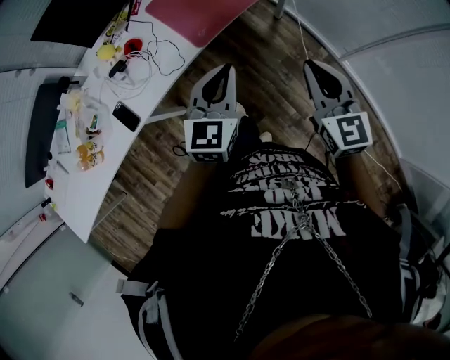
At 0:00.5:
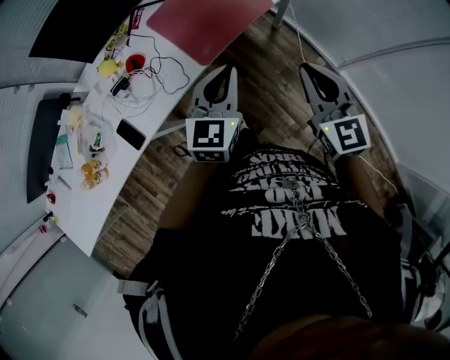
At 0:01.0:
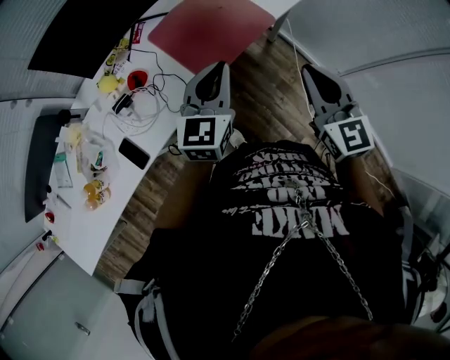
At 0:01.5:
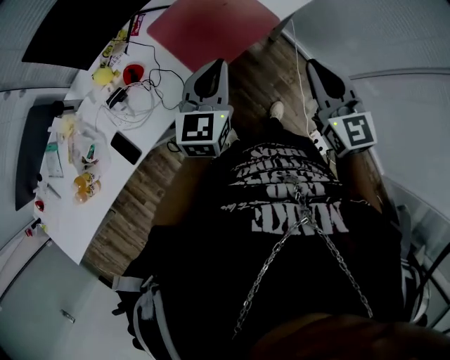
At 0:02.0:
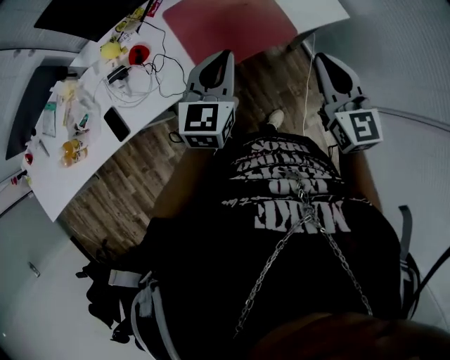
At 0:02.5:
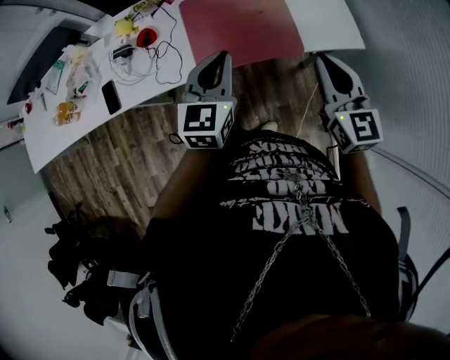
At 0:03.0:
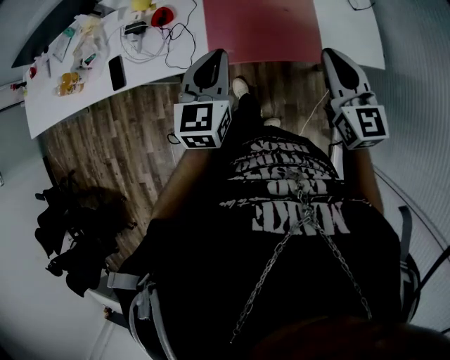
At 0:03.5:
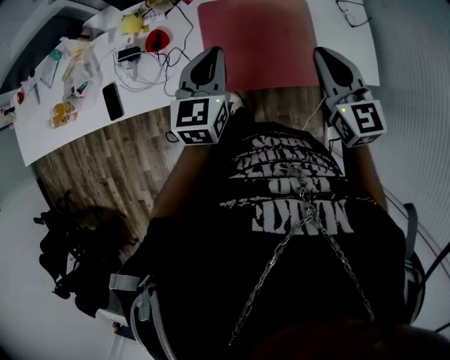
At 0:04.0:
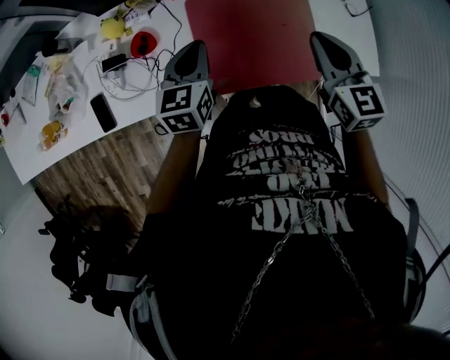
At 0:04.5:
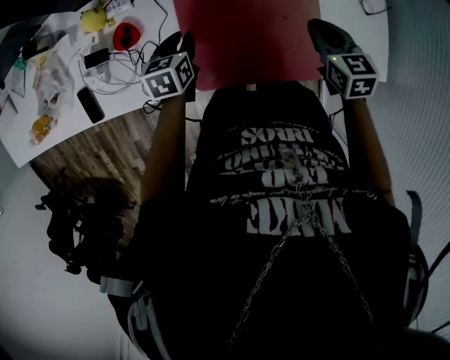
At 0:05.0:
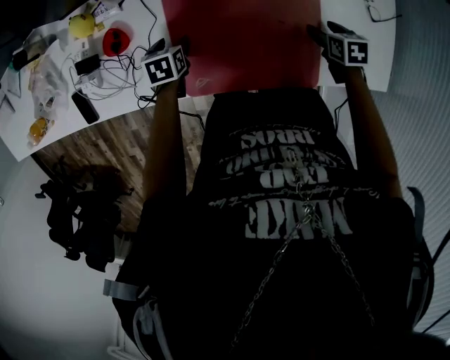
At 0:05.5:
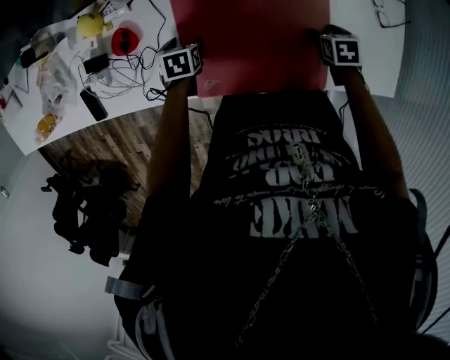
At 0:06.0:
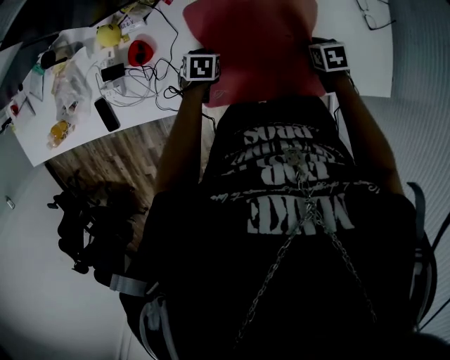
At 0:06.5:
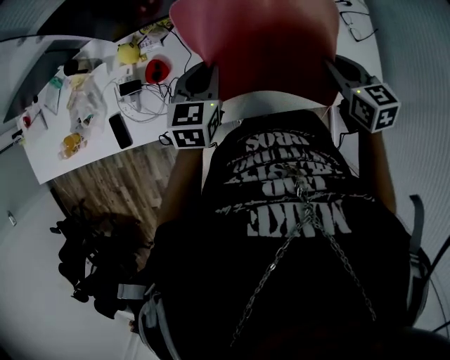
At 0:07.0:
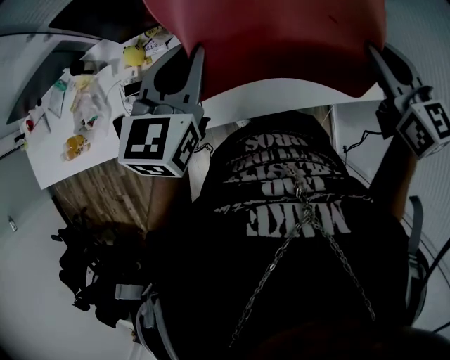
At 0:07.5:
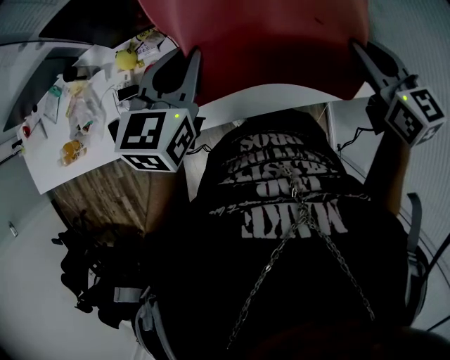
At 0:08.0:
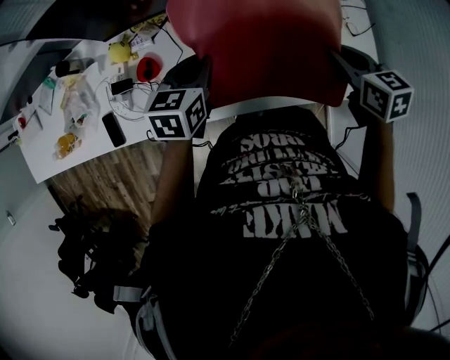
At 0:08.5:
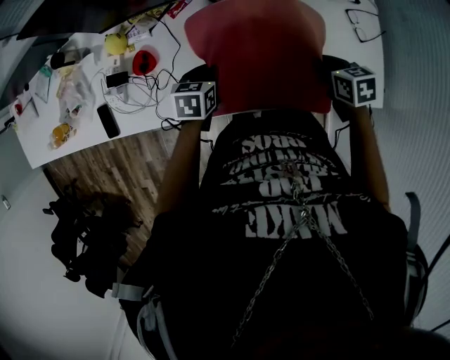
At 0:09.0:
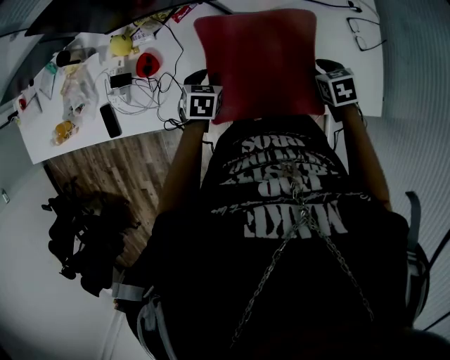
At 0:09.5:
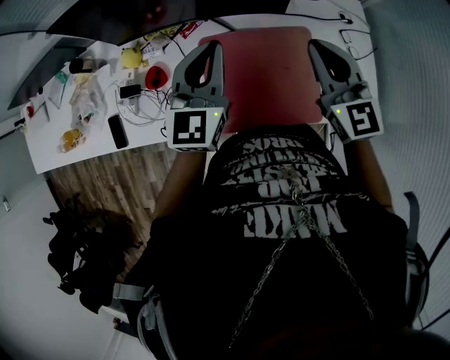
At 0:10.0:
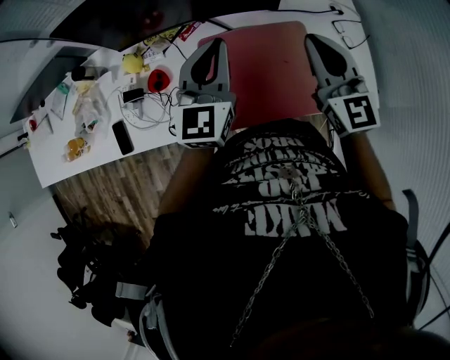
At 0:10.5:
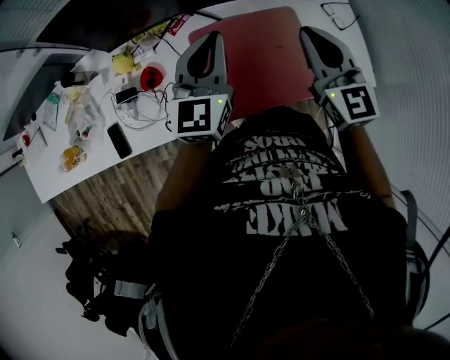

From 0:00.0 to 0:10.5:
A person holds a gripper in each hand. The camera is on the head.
From 0:00.0 to 0:02.0: The two grippers go some 25 cm forward.
From 0:02.0 to 0:04.0: The left gripper moves about 25 cm, and swivels about 30 degrees. Meanwhile the right gripper changes place by some 30 cm, and swivels about 20 degrees.
From 0:04.0 to 0:06.5: The left gripper goes downward and returns, approximately 25 cm each way, and opens, then closes again. Meanwhile the right gripper is displaced to the right by about 10 cm, travels downward and back again, some 35 cm each way, and opens, then closes again.
From 0:06.5 to 0:08.5: Both grippers travel together downward, roughly 15 cm. The right gripper changes its angle by approximately 20 degrees, while the left gripper changes its angle by approximately 20 degrees.
From 0:08.5 to 0:10.5: The two grippers go approximately 25 cm upward. The left gripper tilts its fingers about 50 degrees upward. Meanwhile the right gripper points its fingers roughly 50 degrees further upward.

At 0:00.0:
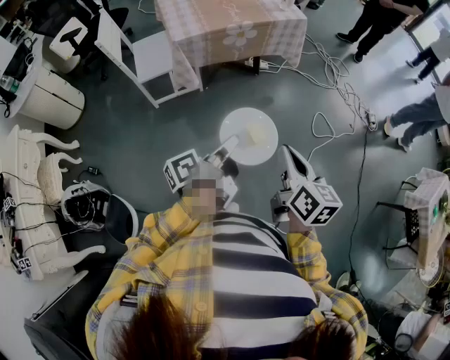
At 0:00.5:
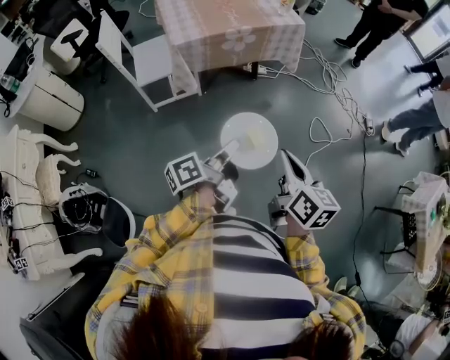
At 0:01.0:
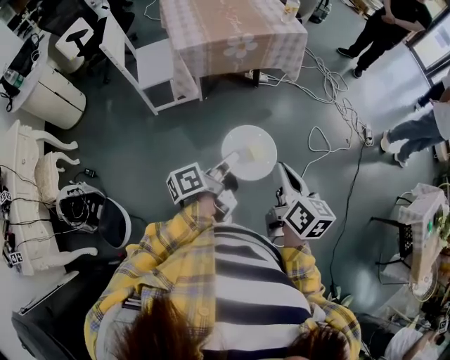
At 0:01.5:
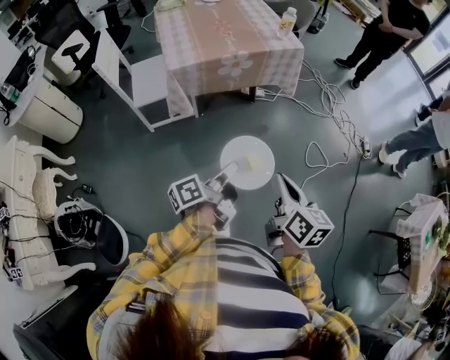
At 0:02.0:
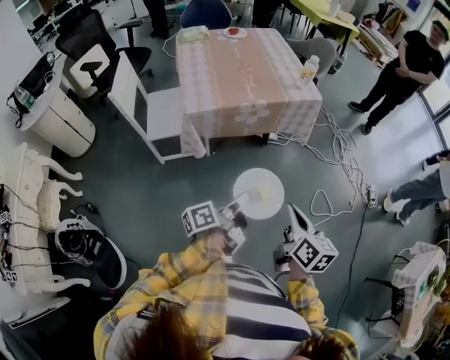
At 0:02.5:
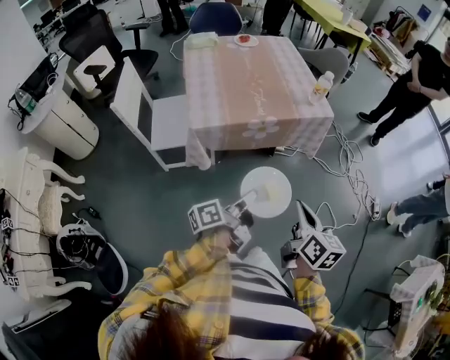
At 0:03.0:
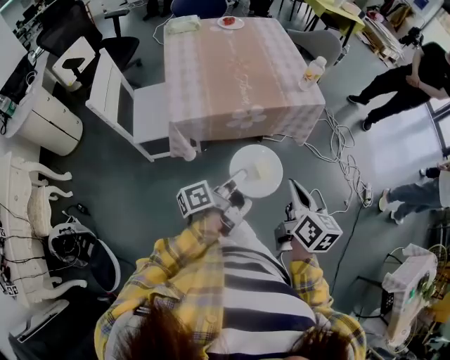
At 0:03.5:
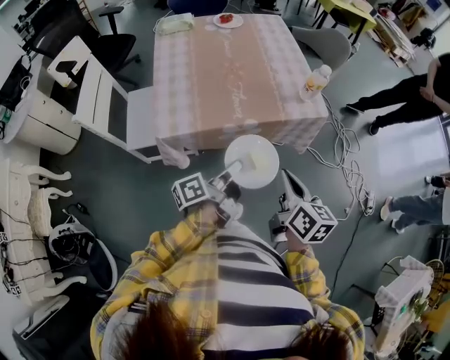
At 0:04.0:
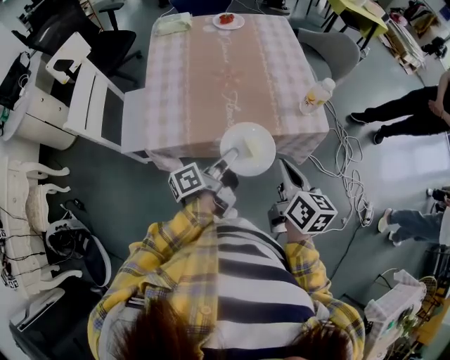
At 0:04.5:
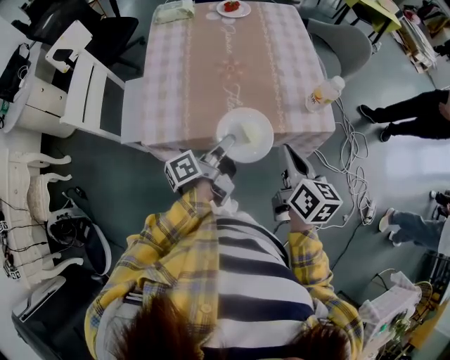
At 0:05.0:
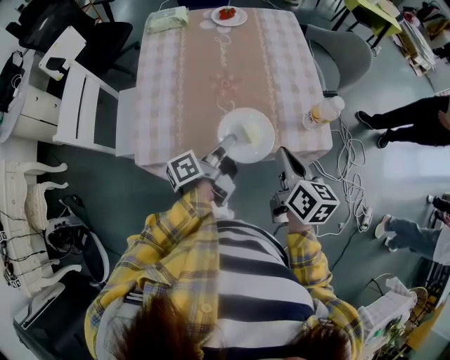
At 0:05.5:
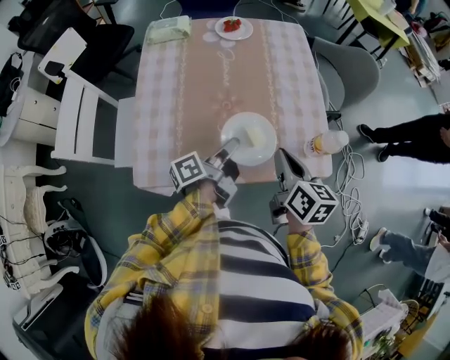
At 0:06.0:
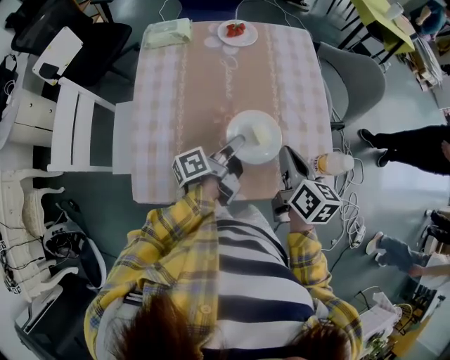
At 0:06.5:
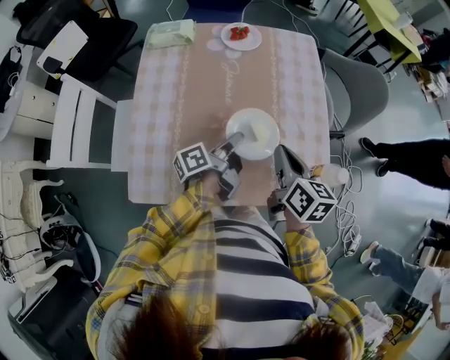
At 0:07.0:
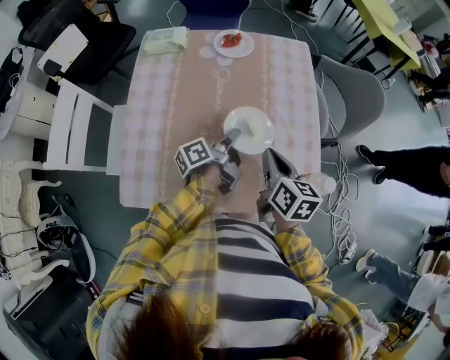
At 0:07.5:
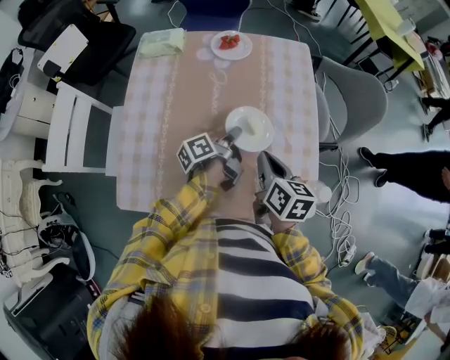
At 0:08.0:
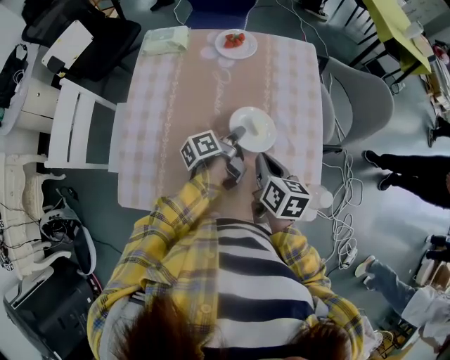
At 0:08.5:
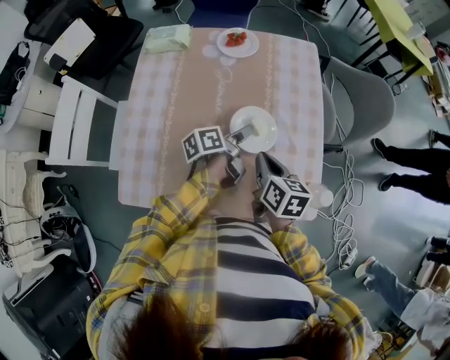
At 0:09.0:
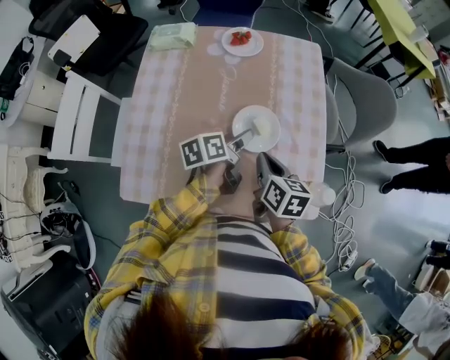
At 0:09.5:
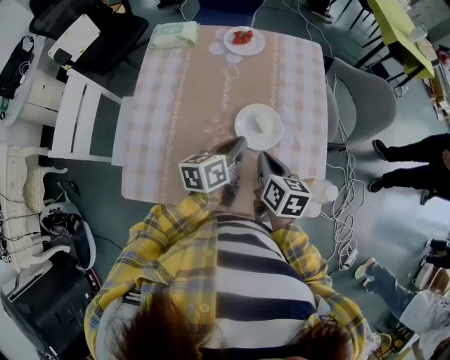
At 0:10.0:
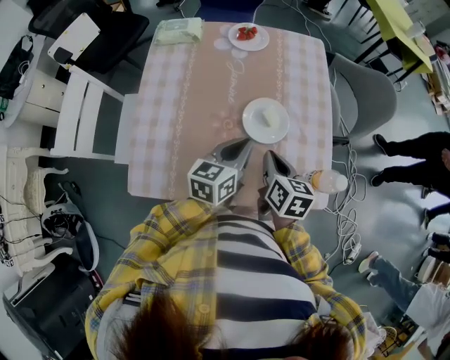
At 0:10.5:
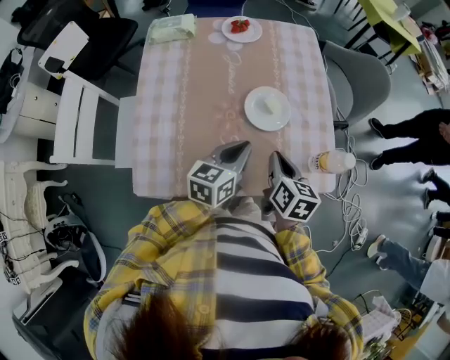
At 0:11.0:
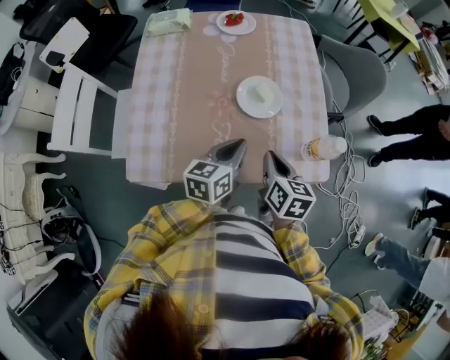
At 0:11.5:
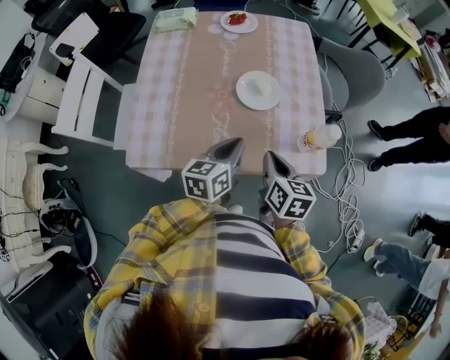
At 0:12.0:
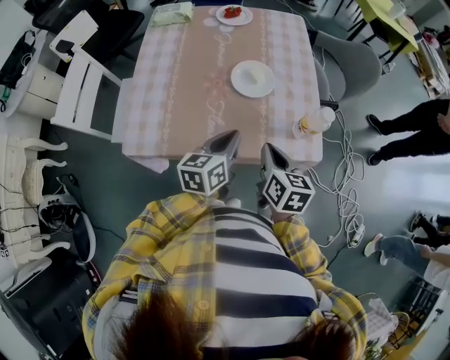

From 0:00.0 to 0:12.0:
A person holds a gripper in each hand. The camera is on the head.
From 0:00.0 to 0:02.0: The right gripper moves some 15 cm.
From 0:02.0 to 0:04.0: The right gripper shifts by some 35 cm.
From 0:04.0 to 0:06.0: The right gripper ends up approximately 25 cm from where it was.
From 0:06.0 to 0:08.0: The right gripper goes about 5 cm downward.
From 0:10.0 to 0:12.0: The right gripper changes place by some 15 cm.

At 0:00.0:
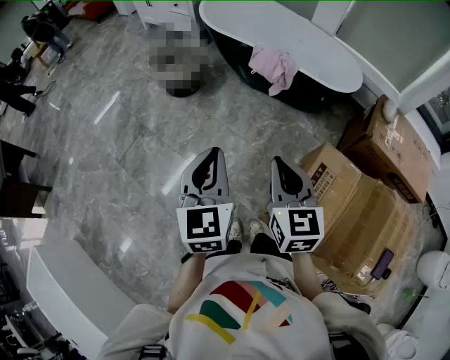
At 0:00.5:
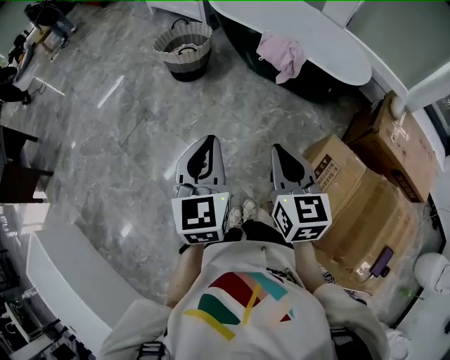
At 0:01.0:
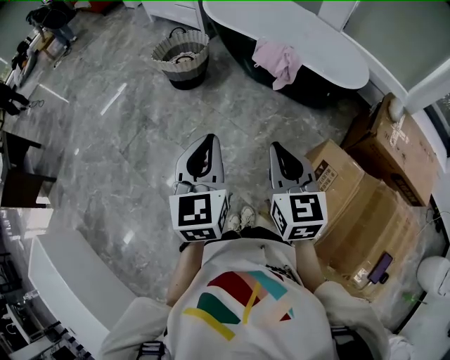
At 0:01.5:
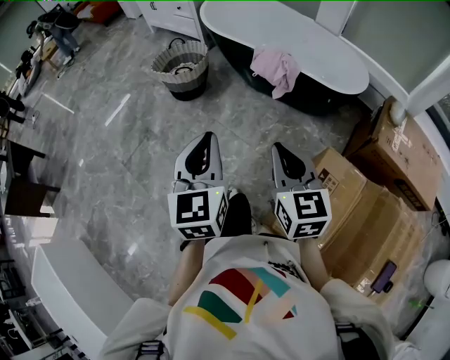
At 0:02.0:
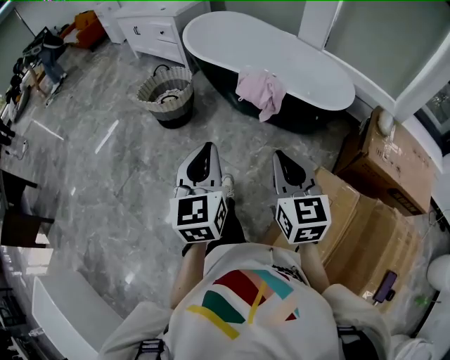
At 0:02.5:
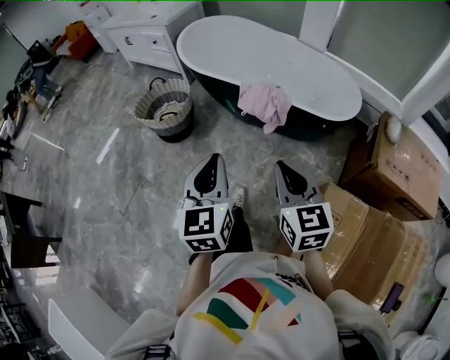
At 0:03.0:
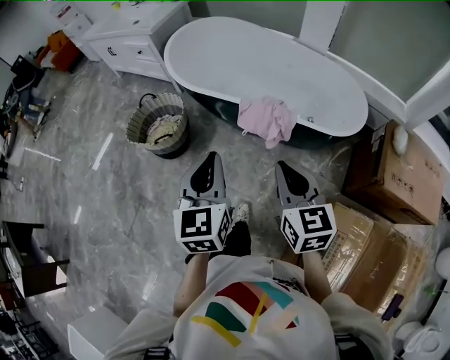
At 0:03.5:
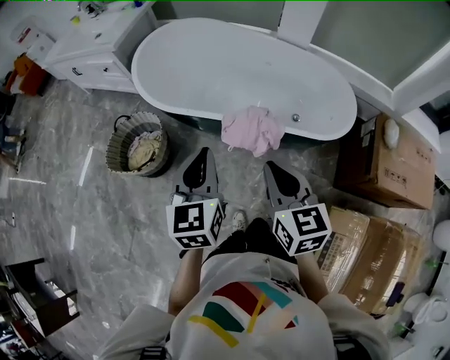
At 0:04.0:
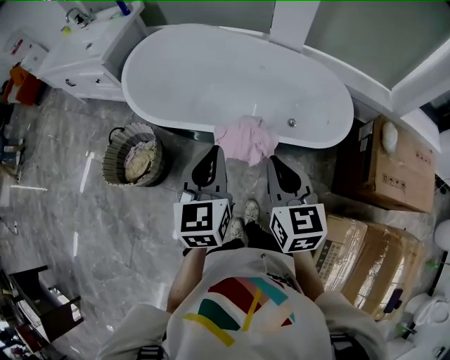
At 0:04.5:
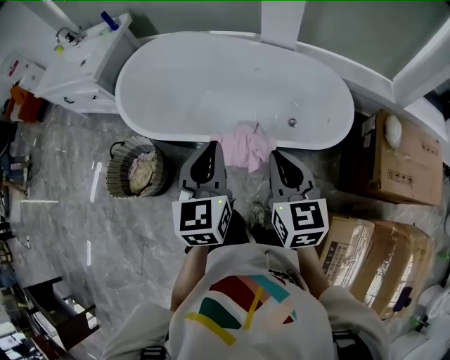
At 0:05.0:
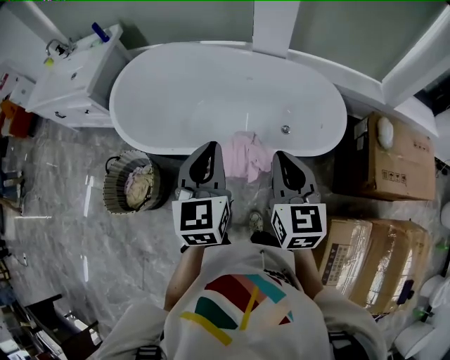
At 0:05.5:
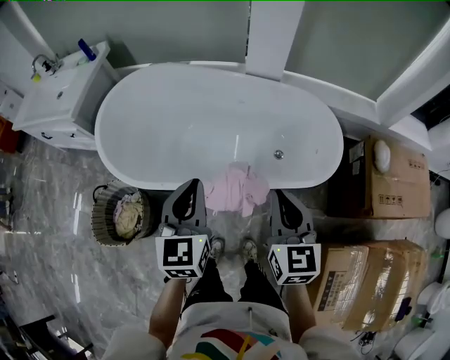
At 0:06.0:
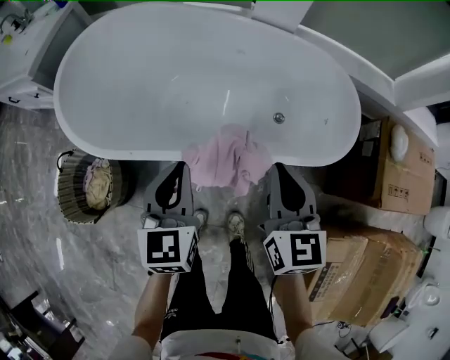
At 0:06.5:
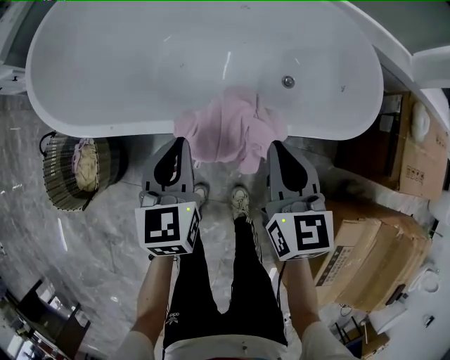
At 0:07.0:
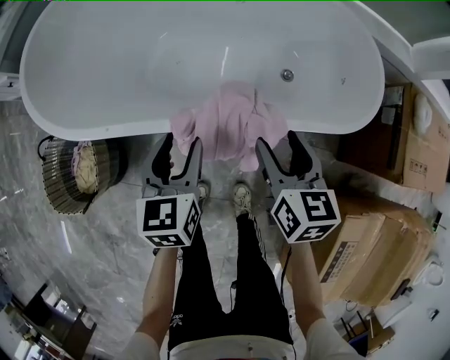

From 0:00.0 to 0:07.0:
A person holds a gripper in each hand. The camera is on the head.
From 0:00.0 to 0:02.0: Both grippers move forward and to the right, about 15 cm.
From 0:02.0 to 0:03.5: Both grippers are carried forward, approximately 40 cm.
From 0:03.5 to 0:05.0: Both grippers travel together forward and to the right, roughly 15 cm.
From 0:05.0 to 0:07.0: Both grippers move downward, about 35 cm. The left gripper changes its angle by approximately 20 degrees, and opens up. The right gripper changes its angle by roughly 20 degrees, and opens.
